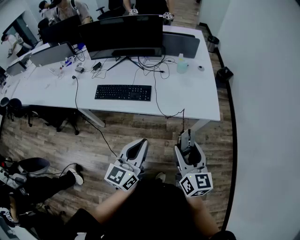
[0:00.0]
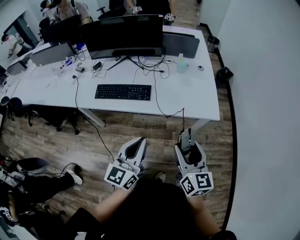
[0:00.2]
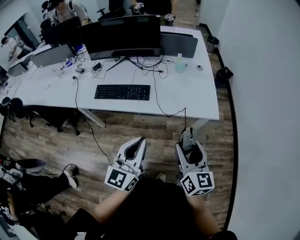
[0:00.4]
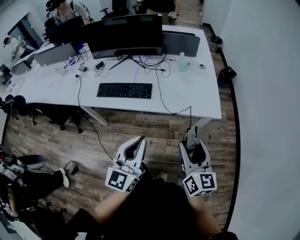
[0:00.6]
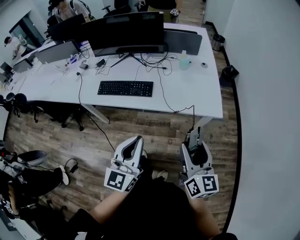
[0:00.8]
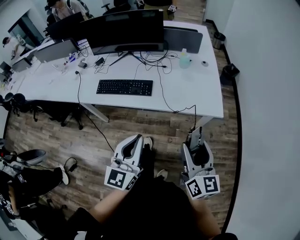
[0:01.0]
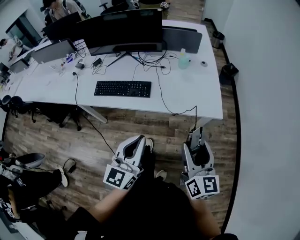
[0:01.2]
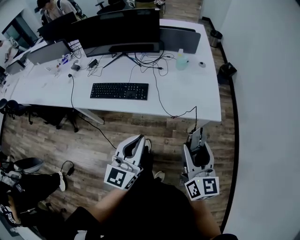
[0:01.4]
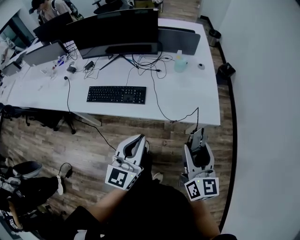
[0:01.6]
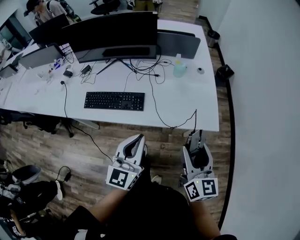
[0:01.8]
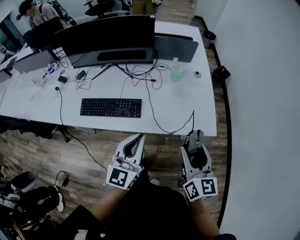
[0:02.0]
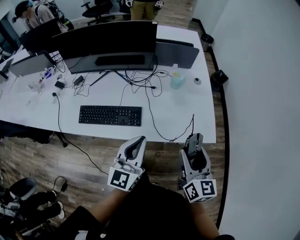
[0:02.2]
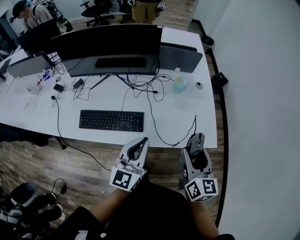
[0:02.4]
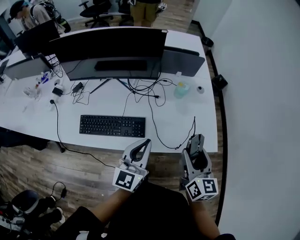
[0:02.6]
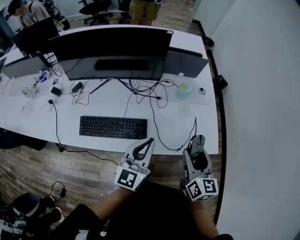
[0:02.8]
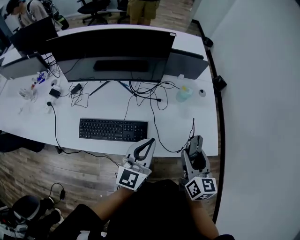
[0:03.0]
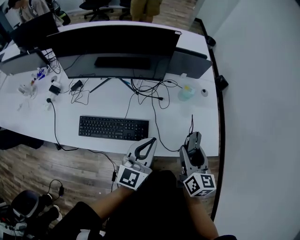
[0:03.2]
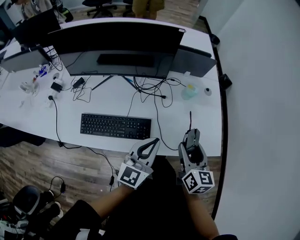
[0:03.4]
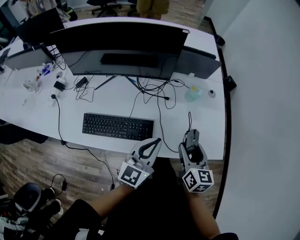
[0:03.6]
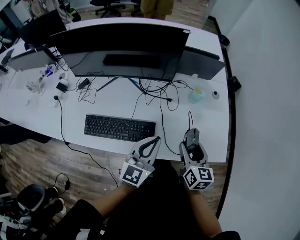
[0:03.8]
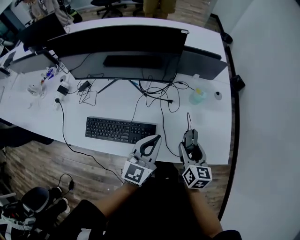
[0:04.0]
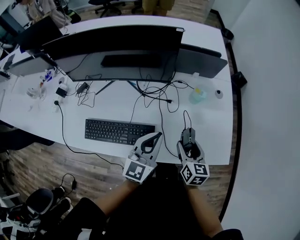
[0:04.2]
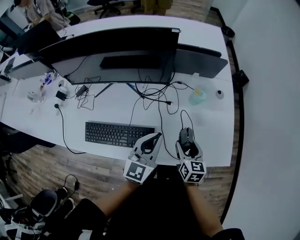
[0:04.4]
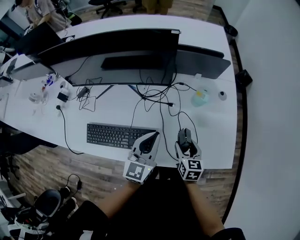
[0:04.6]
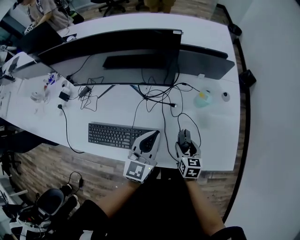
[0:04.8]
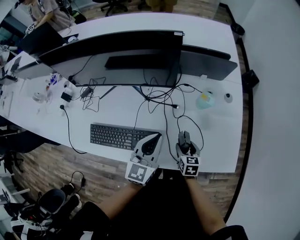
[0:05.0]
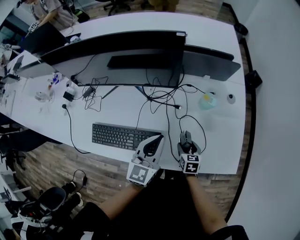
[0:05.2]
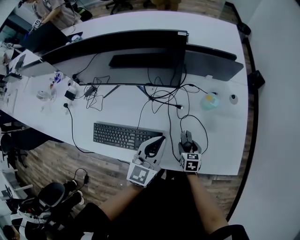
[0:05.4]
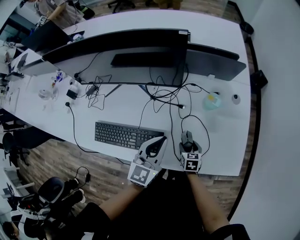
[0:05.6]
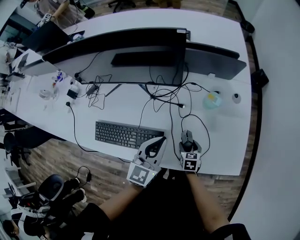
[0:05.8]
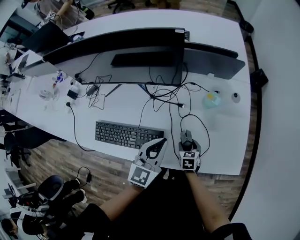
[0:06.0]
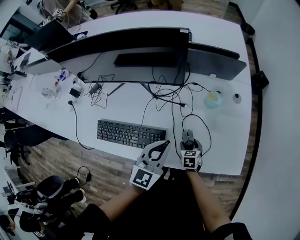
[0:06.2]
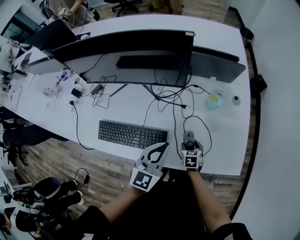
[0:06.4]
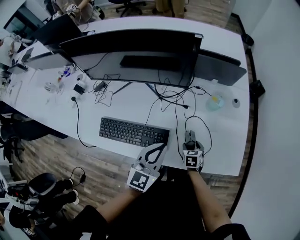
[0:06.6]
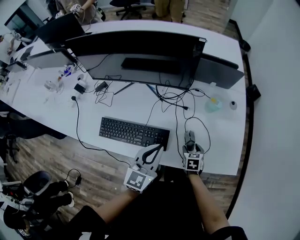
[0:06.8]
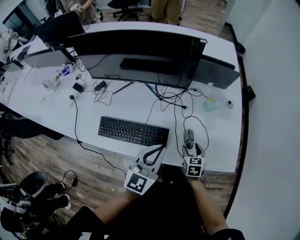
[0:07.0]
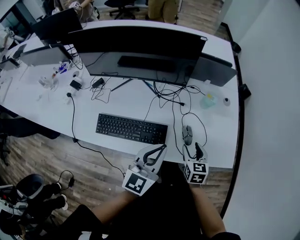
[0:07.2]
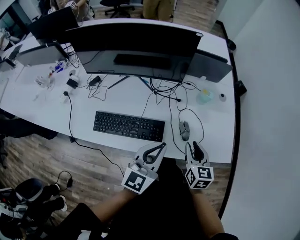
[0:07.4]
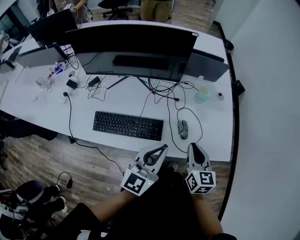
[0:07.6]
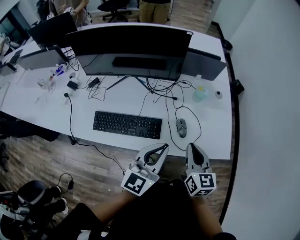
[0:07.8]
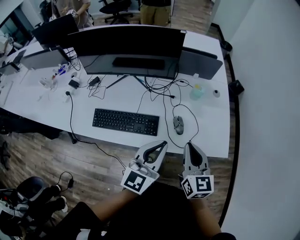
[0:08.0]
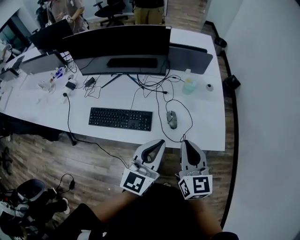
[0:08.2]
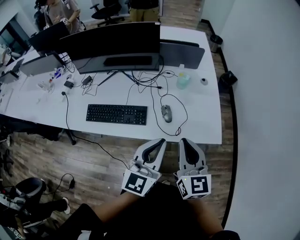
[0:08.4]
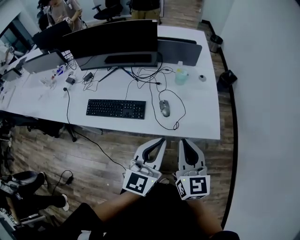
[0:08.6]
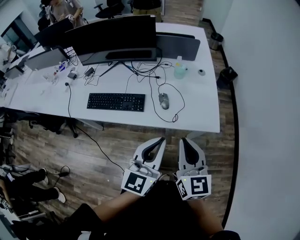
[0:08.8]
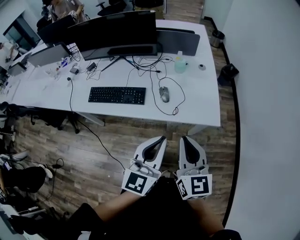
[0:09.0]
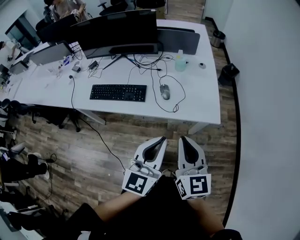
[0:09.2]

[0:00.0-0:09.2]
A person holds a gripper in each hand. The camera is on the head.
0.0 to 1.6 s: The right gripper is displaced forward and to the right by some 10 cm. The left gripper is displaced forward by some 10 cm.
1.6 to 3.0 s: The right gripper is displaced forward and to the left by some 25 cm; the left gripper moves forward, roughly 25 cm.
3.0 to 4.6 s: The right gripper heads downward and forward, covering roughly 25 cm, and rotates about 20 degrees; the left gripper travels forward and downward by approximately 15 cm.
4.6 to 6.2 s: The right gripper moves downward, about 15 cm, and changes its angle by about 20 degrees.
6.2 to 7.6 s: The left gripper heads backward and upward, covering roughly 15 cm, while the right gripper heads upward, covering some 30 cm, tips its fingers upward by some 30 degrees, and closes up.
7.6 to 9.2 s: The left gripper goes roughly 30 cm backward and to the right. Meanwhile the right gripper goes about 30 cm backward, to the right and upward.

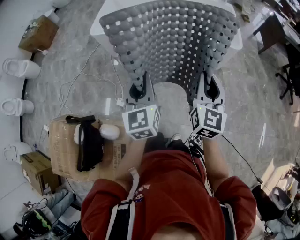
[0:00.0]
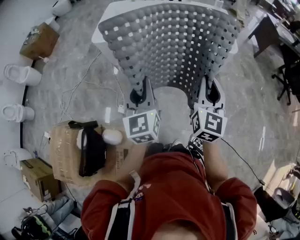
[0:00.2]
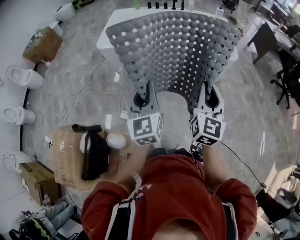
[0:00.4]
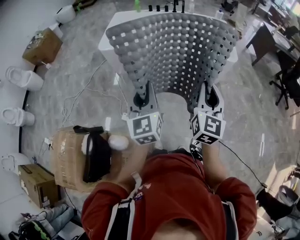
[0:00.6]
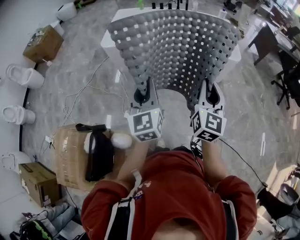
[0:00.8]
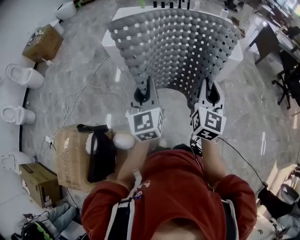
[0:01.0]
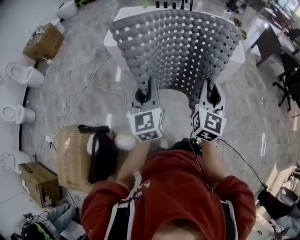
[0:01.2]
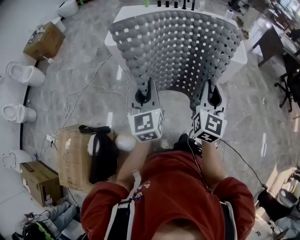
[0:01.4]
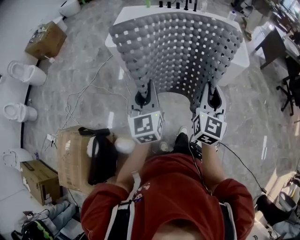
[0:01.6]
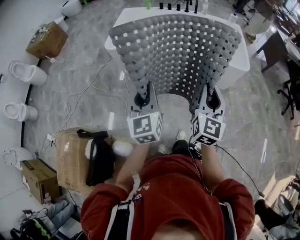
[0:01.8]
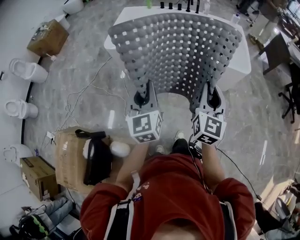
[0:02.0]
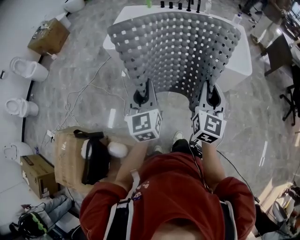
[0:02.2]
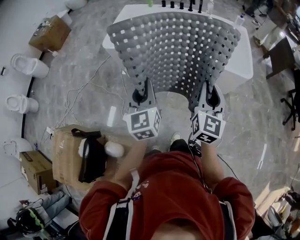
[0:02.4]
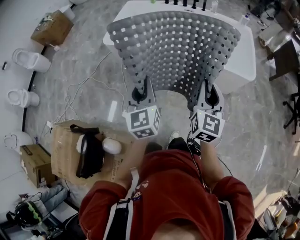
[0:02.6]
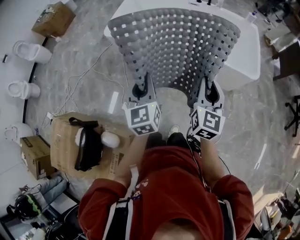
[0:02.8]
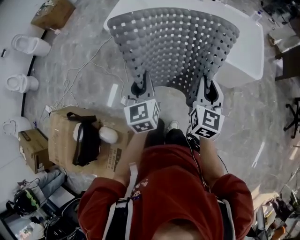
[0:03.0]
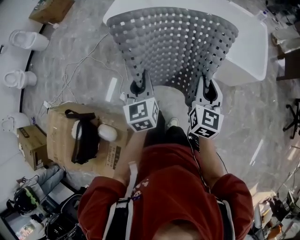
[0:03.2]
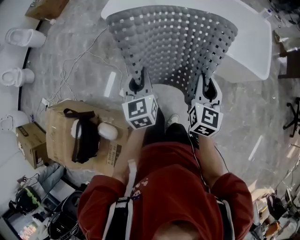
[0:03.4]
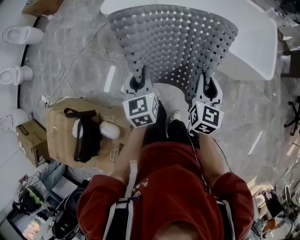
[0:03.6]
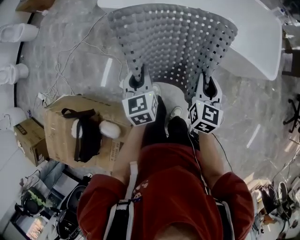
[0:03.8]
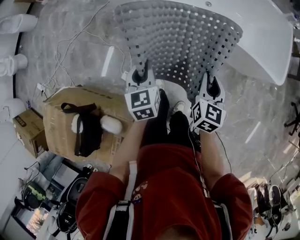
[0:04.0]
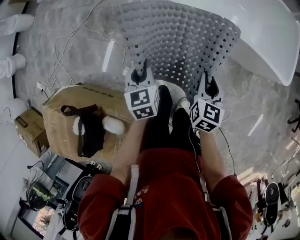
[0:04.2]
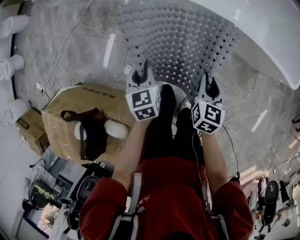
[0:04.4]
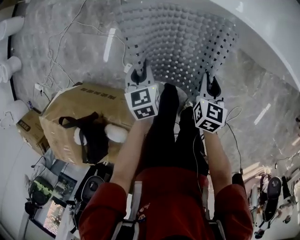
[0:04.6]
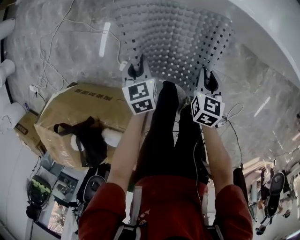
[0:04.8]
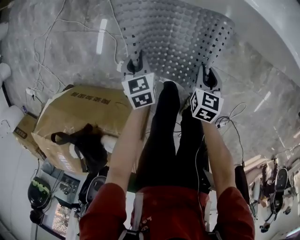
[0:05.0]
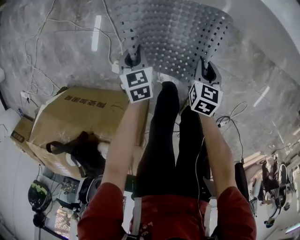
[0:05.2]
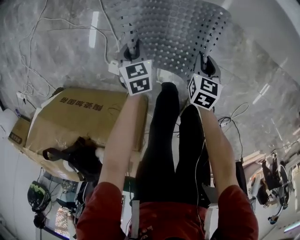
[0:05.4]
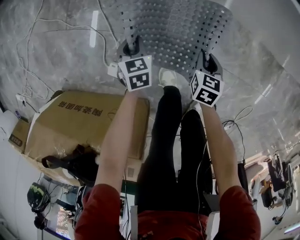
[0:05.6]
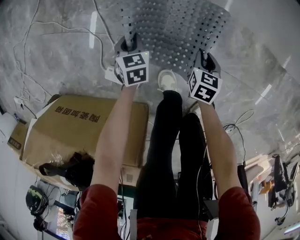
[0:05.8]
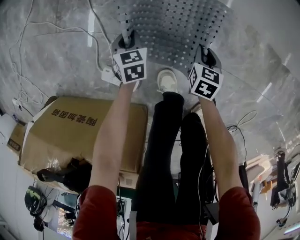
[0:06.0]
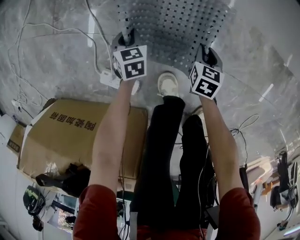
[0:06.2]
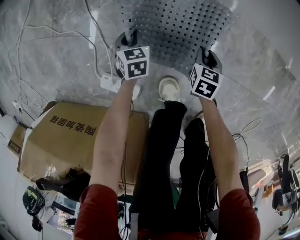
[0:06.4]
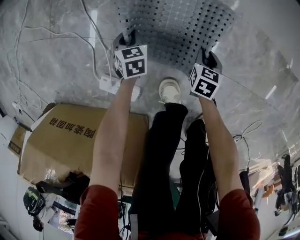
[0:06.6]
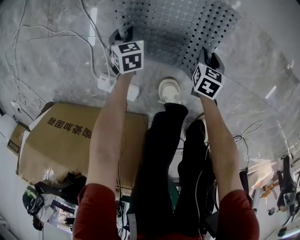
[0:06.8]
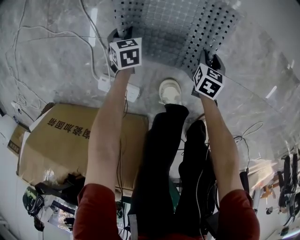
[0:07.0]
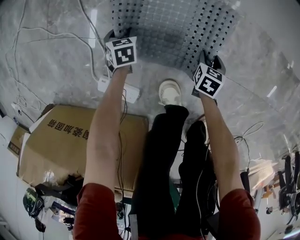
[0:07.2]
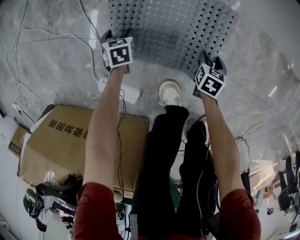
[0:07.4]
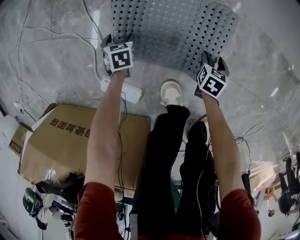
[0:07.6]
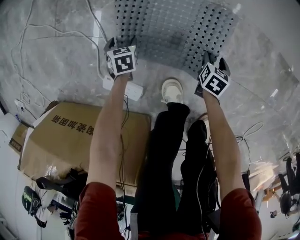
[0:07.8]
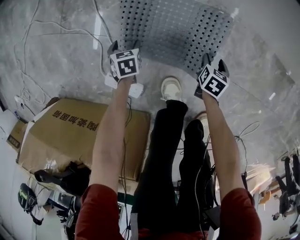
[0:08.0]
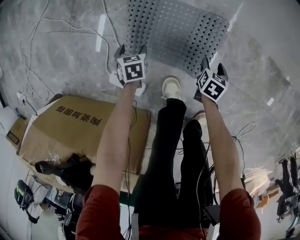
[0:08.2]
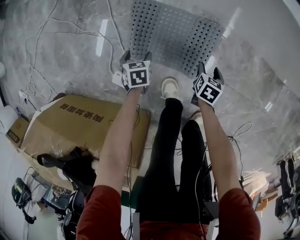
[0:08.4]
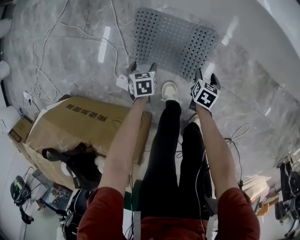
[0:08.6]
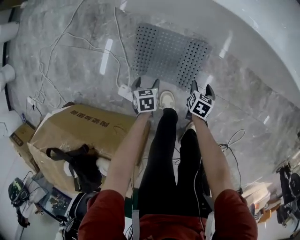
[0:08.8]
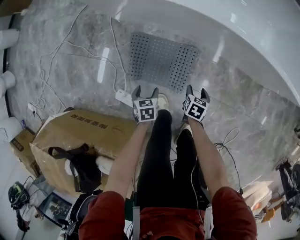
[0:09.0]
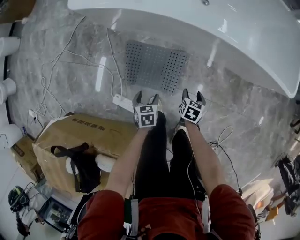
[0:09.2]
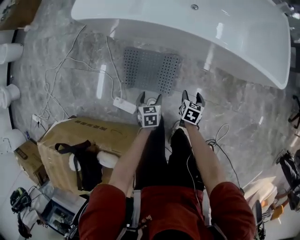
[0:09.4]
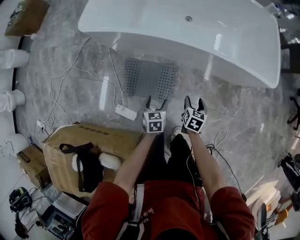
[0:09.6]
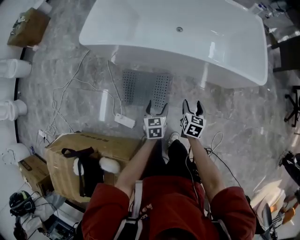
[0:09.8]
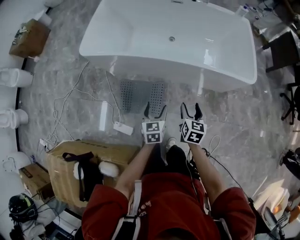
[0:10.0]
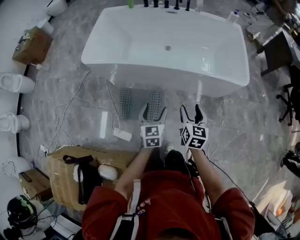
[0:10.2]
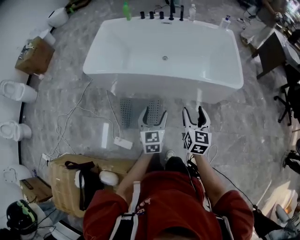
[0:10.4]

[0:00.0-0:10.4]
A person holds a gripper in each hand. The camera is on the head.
0.0 to 1.4 s: The grippers both shift to the left by roughly 10 cm.
1.4 to 3.0 s: The grippers both shift forward, downward and to the right by approximately 20 cm.
3.0 to 4.4 s: Both grippers travel together downward, to the left and forward, about 35 cm. The right gripper rotates some 30 degrees. Meanwhile the left gripper swivels some 30 degrees.
4.4 to 6.0 s: Both grippers travel together downward, some 50 cm. The left gripper swivels roughly 20 degrees.
6.0 to 7.4 s: The grippers both shift downward by about 15 cm. The right gripper opens; the left gripper opens its fingers.
7.4 to 9.0 s: The left gripper heads upward and to the right, covering approximately 35 cm, while the right gripper heads upward, covering some 30 cm.
9.0 to 10.4 s: The right gripper shifts about 60 cm upward, and tips its fingers upward by approximately 40 degrees; the left gripper moves upward and to the right, roughly 60 cm, and tips its fingers upward by about 40 degrees.

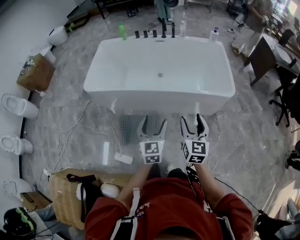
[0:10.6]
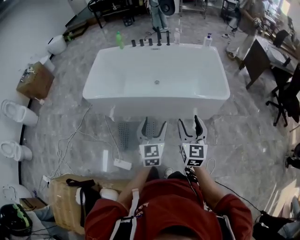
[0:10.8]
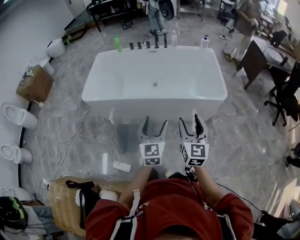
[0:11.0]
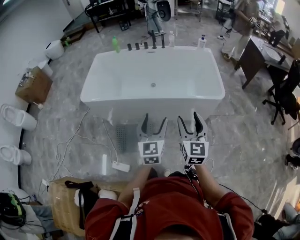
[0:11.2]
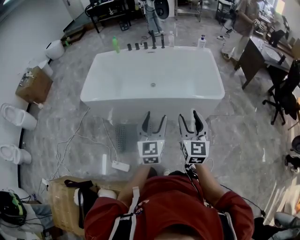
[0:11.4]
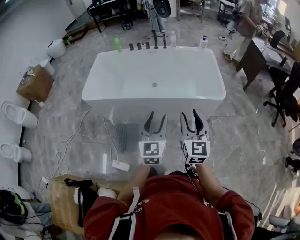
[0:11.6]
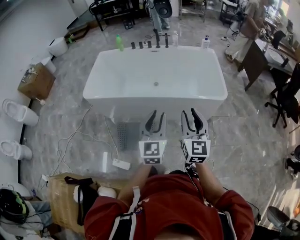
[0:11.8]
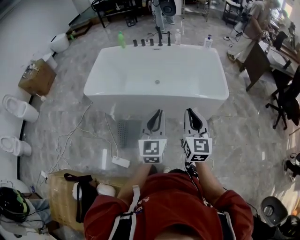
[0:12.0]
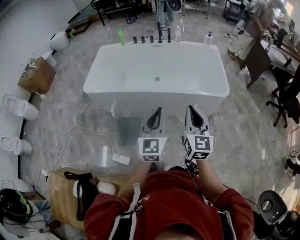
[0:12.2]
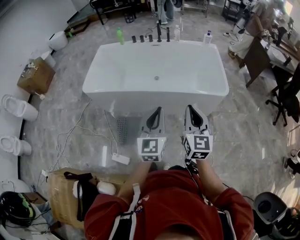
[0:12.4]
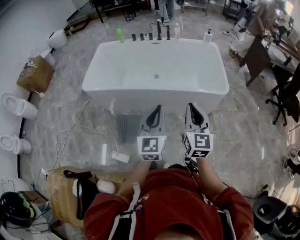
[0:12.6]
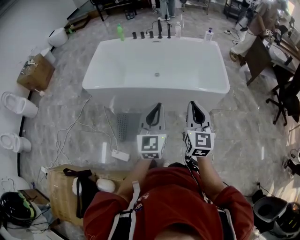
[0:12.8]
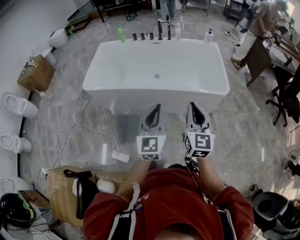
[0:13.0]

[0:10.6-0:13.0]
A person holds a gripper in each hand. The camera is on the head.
10.6 to 11.8 s: The right gripper shifts roughly 10 cm upward, and closes, while the left gripper is displaced upward and to the right by some 15 cm, and closes.
11.8 to 13.0 s: The right gripper closes up.

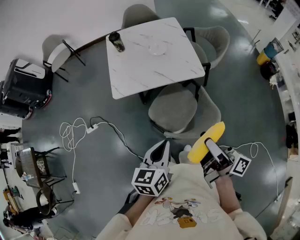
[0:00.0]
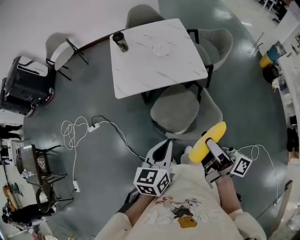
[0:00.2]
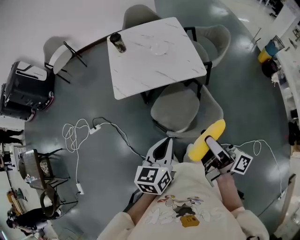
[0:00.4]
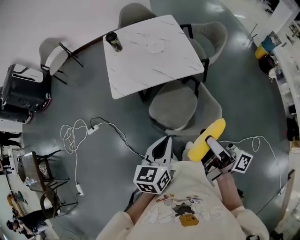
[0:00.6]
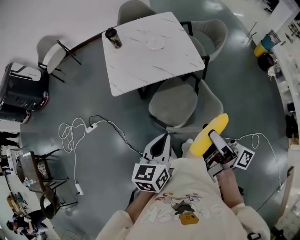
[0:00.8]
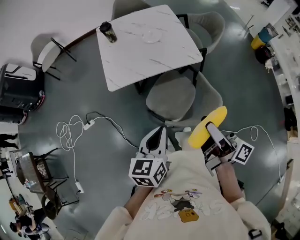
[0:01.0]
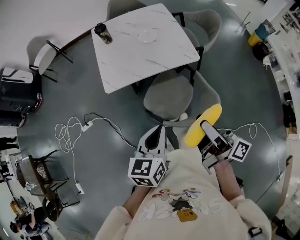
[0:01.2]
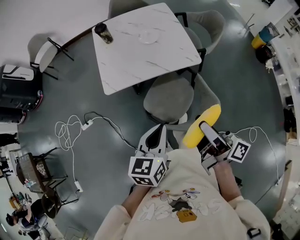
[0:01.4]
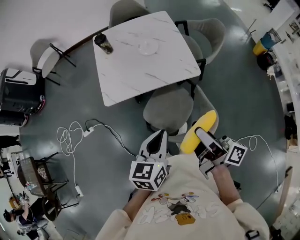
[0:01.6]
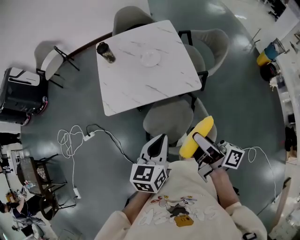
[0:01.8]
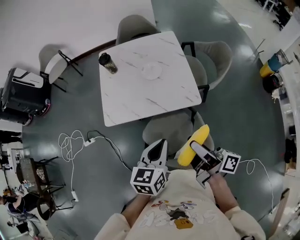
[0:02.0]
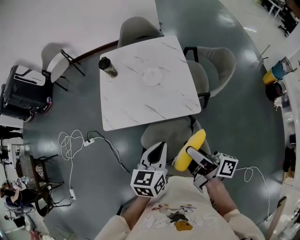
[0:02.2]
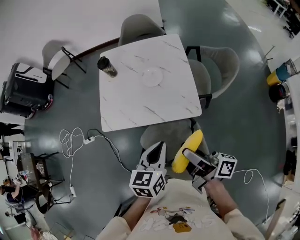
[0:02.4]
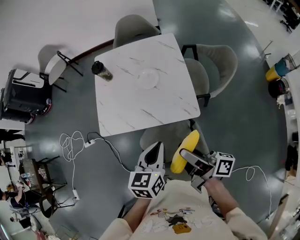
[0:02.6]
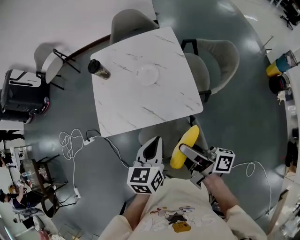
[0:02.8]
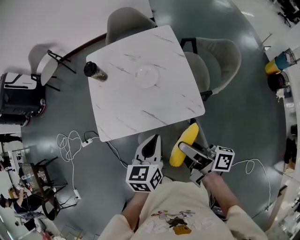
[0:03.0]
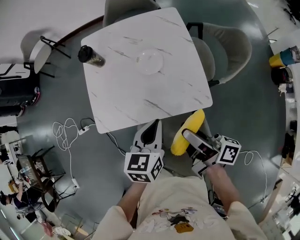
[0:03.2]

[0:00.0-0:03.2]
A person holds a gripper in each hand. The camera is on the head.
0.0 to 1.6 s: The grippers both shift forward by roughly 10 cm.
1.6 to 3.2 s: The two grippers go roughly 30 cm forward.
